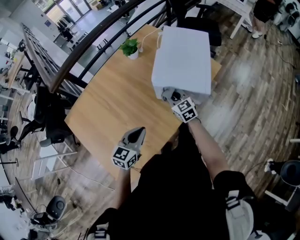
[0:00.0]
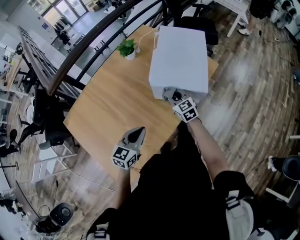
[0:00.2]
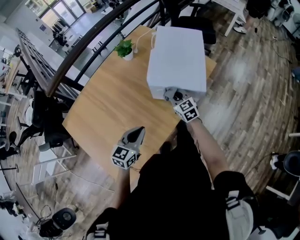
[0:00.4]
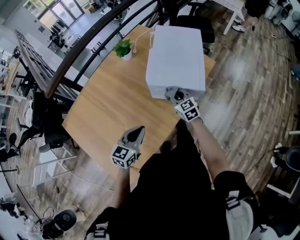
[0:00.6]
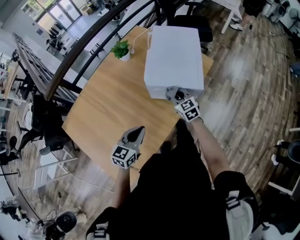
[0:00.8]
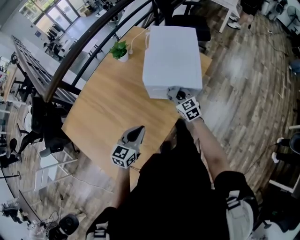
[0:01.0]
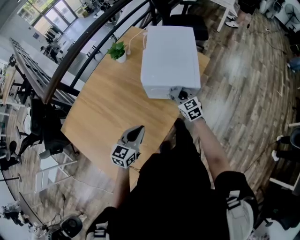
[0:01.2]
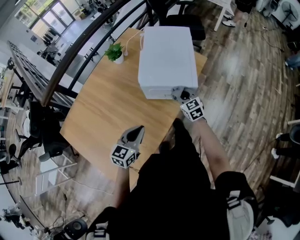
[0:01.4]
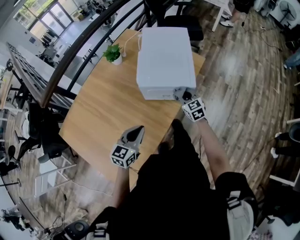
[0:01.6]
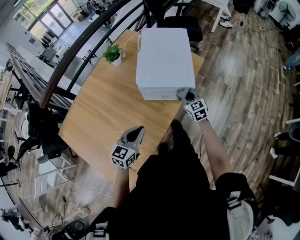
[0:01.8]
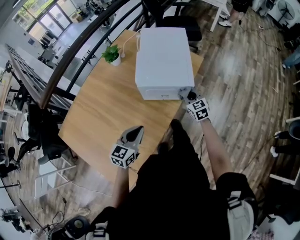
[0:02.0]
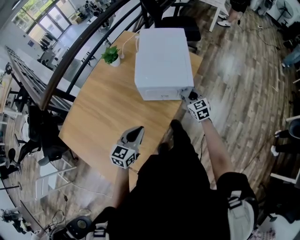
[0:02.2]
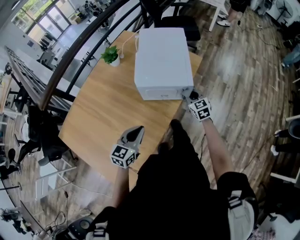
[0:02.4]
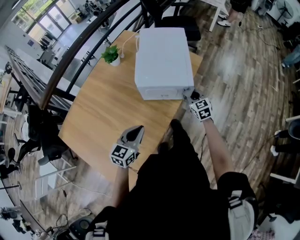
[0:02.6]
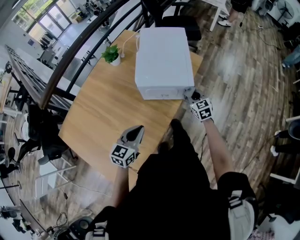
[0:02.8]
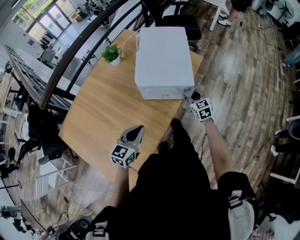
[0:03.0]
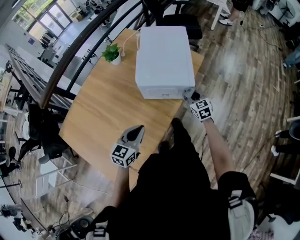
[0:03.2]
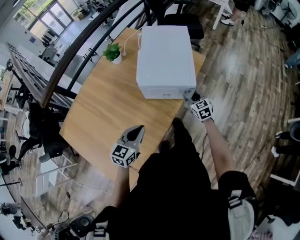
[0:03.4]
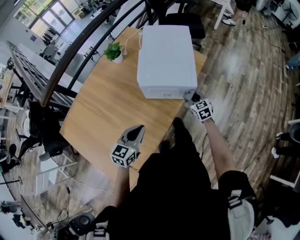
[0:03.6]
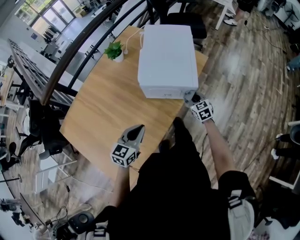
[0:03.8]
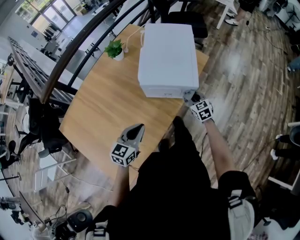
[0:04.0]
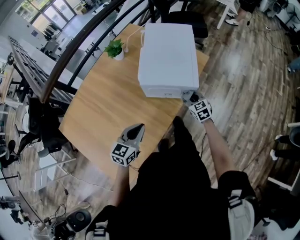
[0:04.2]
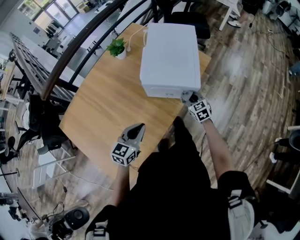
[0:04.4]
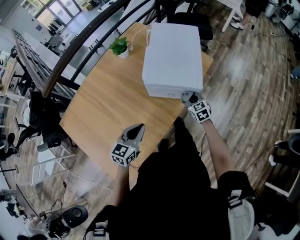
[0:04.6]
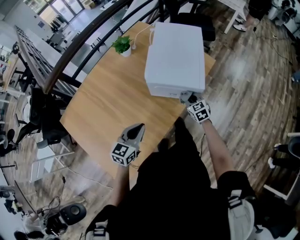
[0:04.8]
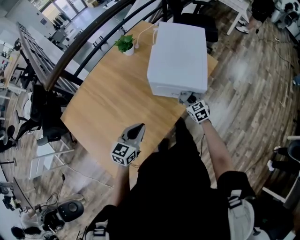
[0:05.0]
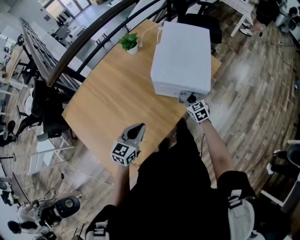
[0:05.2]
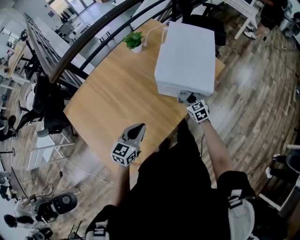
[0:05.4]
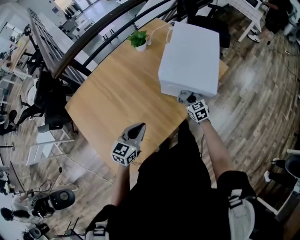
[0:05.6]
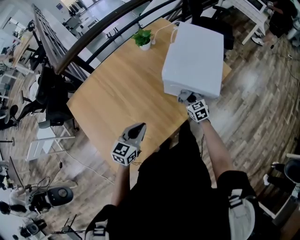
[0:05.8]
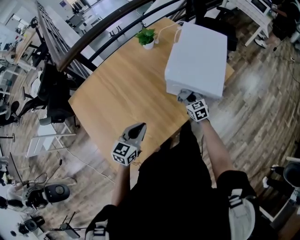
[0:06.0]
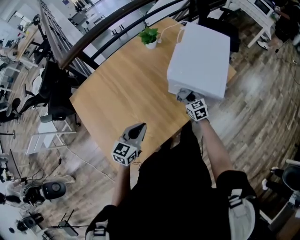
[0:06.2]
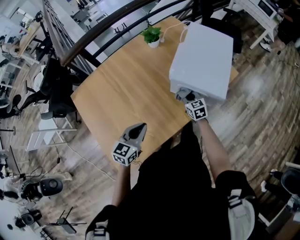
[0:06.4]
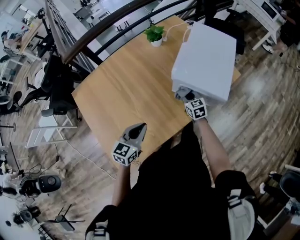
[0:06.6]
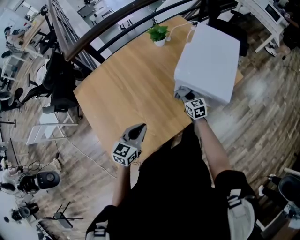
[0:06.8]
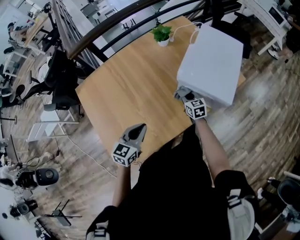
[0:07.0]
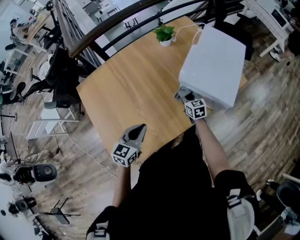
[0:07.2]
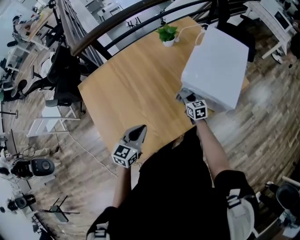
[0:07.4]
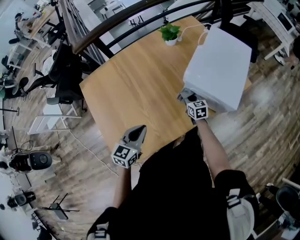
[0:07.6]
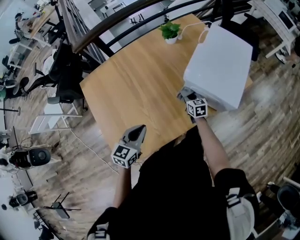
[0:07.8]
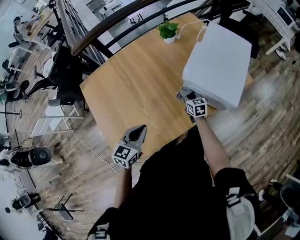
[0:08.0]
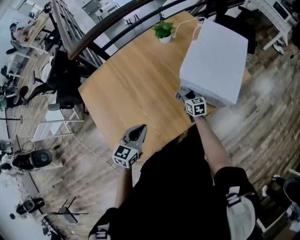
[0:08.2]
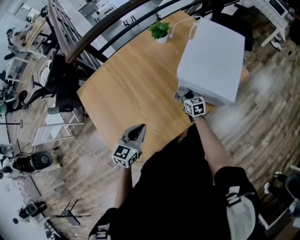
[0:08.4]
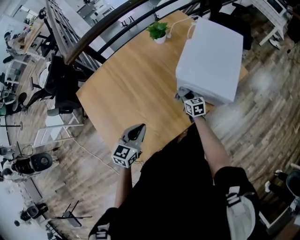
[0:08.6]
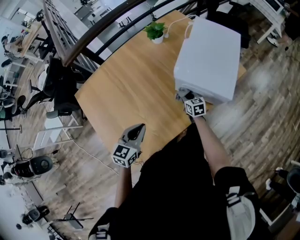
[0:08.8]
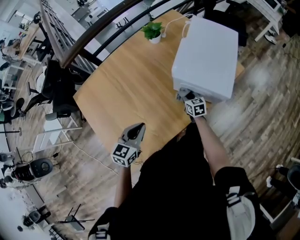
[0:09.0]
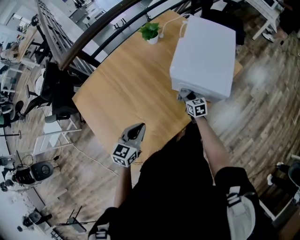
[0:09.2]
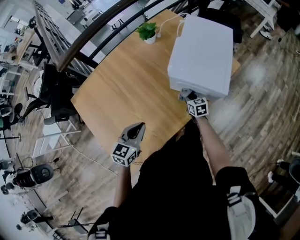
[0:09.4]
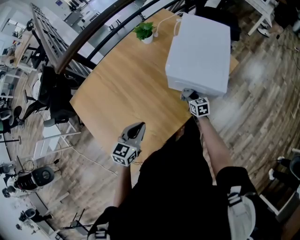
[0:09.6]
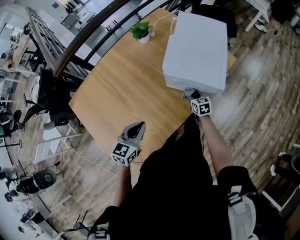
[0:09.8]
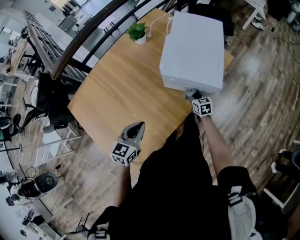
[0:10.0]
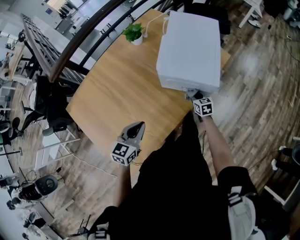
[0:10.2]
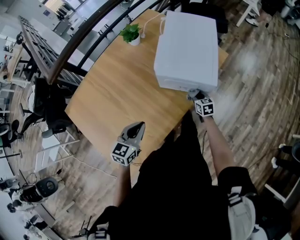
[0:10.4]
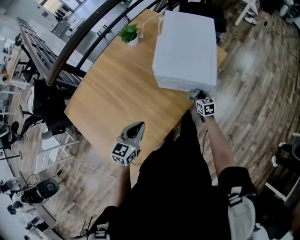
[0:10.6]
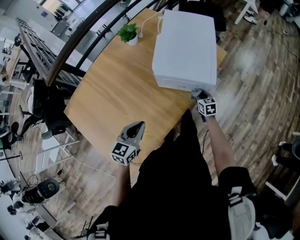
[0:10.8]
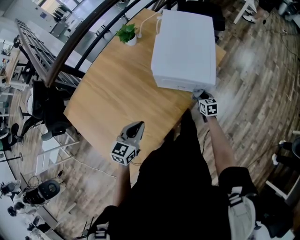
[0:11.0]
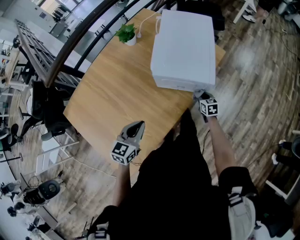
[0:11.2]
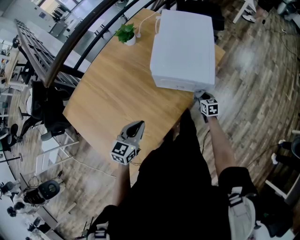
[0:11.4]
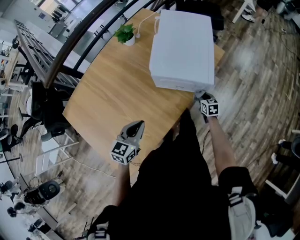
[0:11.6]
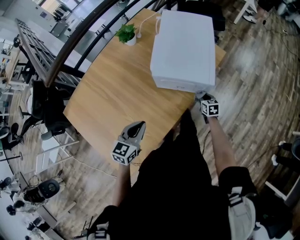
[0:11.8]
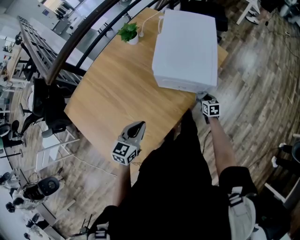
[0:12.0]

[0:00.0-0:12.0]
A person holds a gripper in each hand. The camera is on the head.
0:00.0 to 0:01.6: The right gripper shifts approximately 15 cm to the right.
0:01.6 to 0:03.0: The right gripper goes roughly 5 cm to the right.
0:03.0 to 0:04.4: The right gripper ends up some 5 cm from where it was.
0:04.4 to 0:06.0: The right gripper travels to the left by roughly 15 cm. Meanwhile the left gripper travels to the left by some 5 cm.
0:06.0 to 0:07.6: Both grippers travel together to the left, approximately 5 cm.
0:07.6 to 0:09.0: There are only small adjustments of the grippers.
0:09.0 to 0:10.4: The right gripper shifts approximately 15 cm to the right.
0:10.4 to 0:12.0: The right gripper moves to the right, some 5 cm.

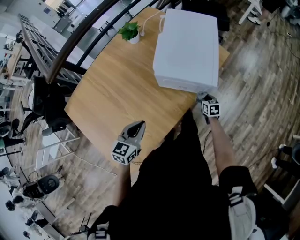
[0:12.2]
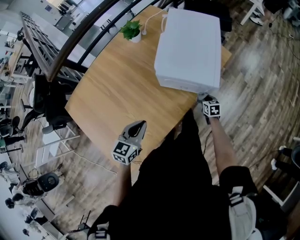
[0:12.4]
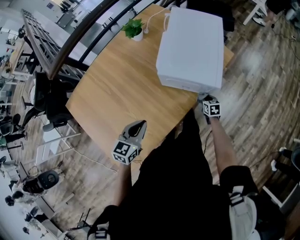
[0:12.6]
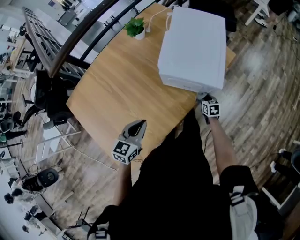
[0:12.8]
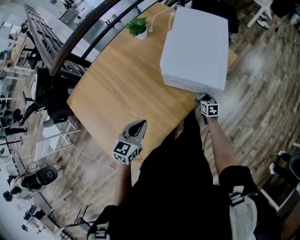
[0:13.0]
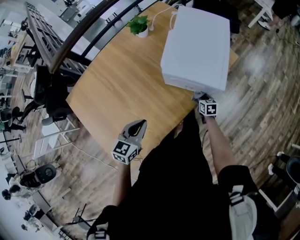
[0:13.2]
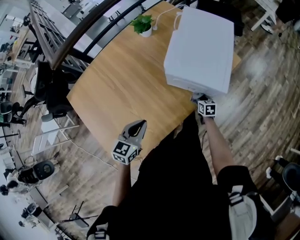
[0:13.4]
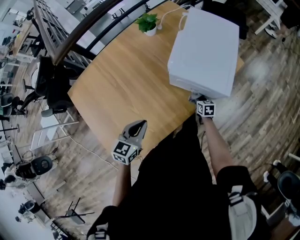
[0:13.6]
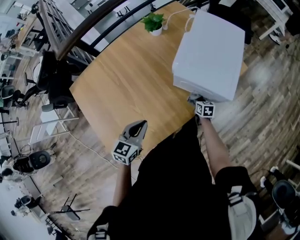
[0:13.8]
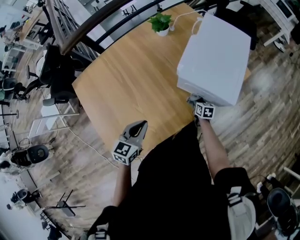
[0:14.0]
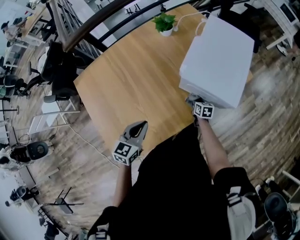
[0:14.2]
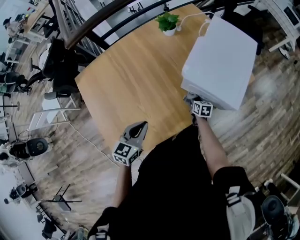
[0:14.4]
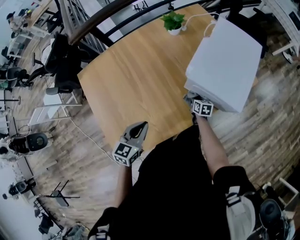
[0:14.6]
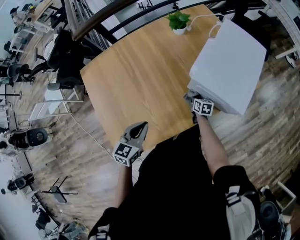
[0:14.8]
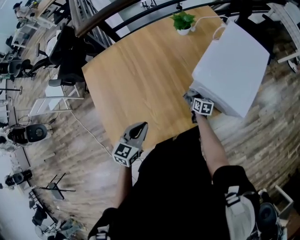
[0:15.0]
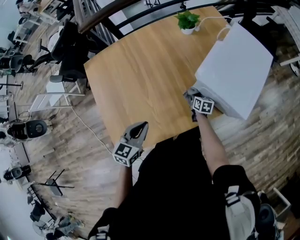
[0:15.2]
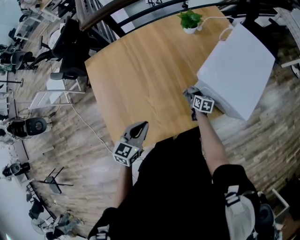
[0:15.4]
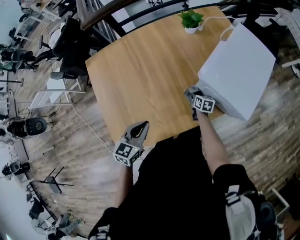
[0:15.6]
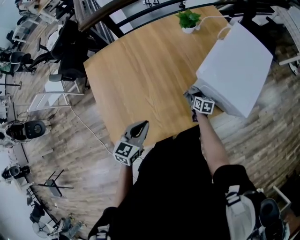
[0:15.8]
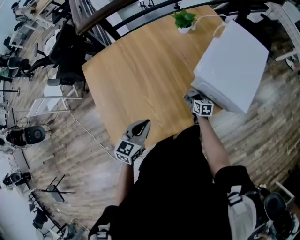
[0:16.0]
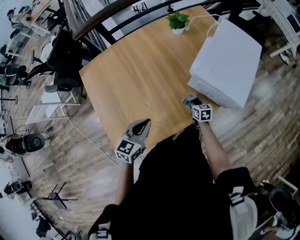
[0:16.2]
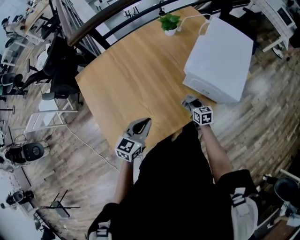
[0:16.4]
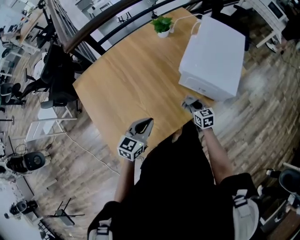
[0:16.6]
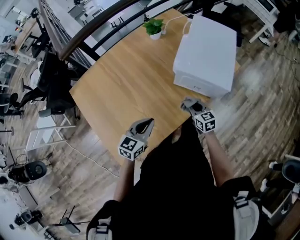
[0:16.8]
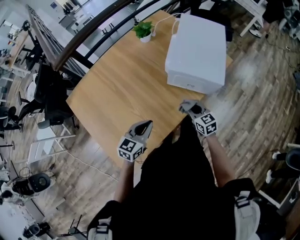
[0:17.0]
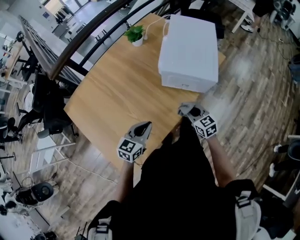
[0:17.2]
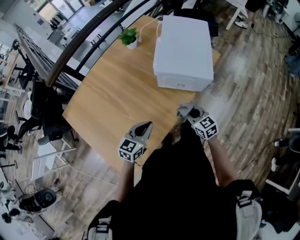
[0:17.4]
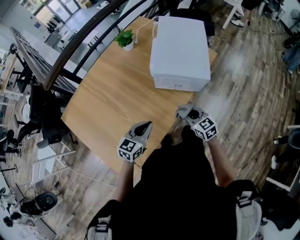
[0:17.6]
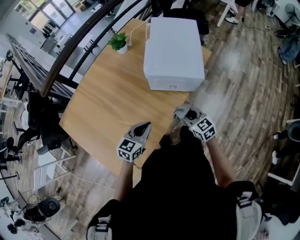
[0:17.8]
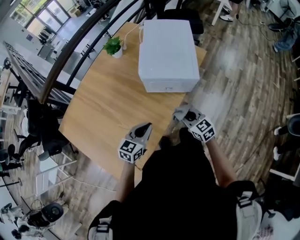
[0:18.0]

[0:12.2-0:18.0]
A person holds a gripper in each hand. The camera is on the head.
0:12.2 to 0:13.6: The right gripper moves to the left, roughly 10 cm.
0:13.6 to 0:15.0: The left gripper moves to the left, some 5 cm. Meanwhile the right gripper moves to the left, approximately 15 cm.
0:15.0 to 0:16.6: The right gripper shifts roughly 15 cm upward and backward, and swivels about 20 degrees.
0:16.6 to 0:18.0: The right gripper moves upward, backward and to the right, roughly 15 cm, while the left gripper travels to the right by about 10 cm, and changes its angle by approximately 20 degrees.

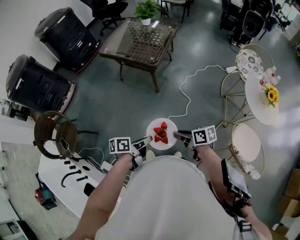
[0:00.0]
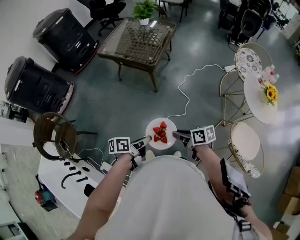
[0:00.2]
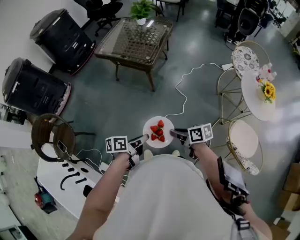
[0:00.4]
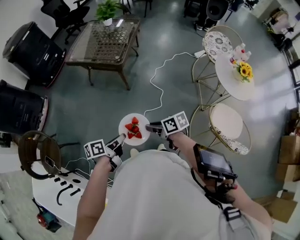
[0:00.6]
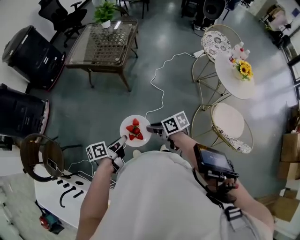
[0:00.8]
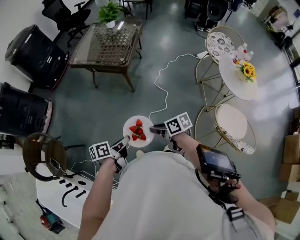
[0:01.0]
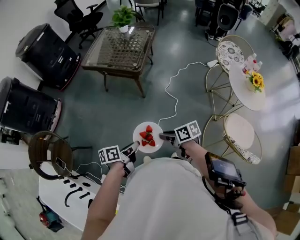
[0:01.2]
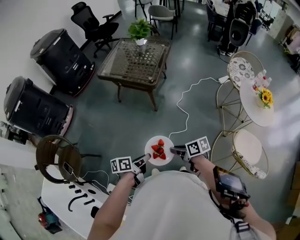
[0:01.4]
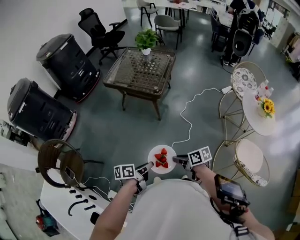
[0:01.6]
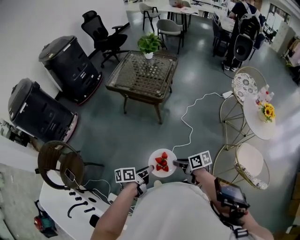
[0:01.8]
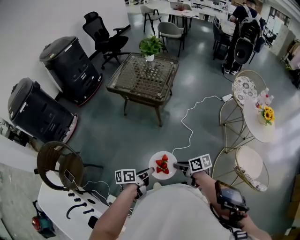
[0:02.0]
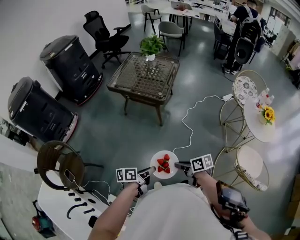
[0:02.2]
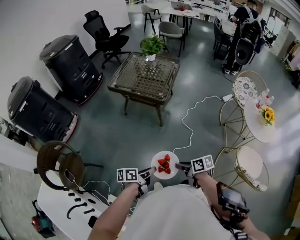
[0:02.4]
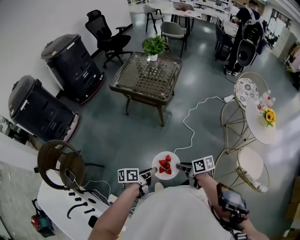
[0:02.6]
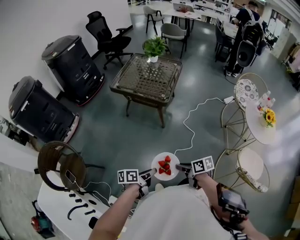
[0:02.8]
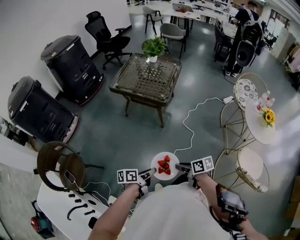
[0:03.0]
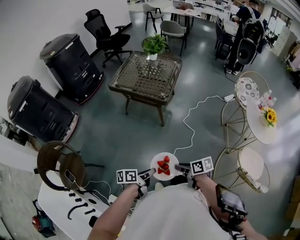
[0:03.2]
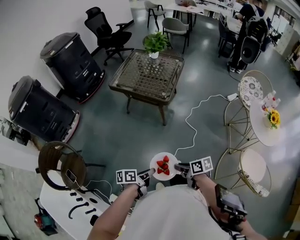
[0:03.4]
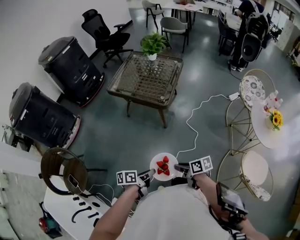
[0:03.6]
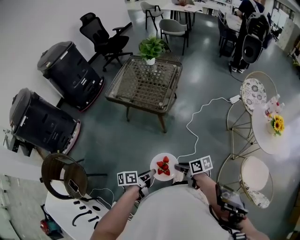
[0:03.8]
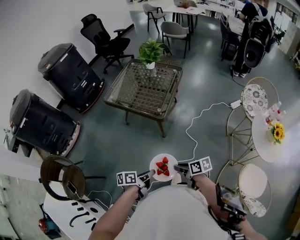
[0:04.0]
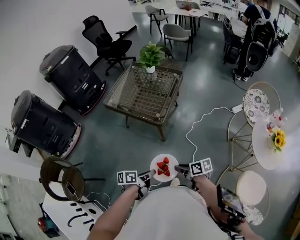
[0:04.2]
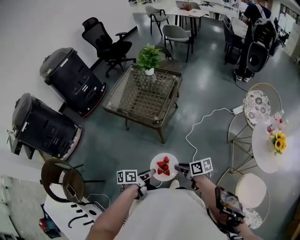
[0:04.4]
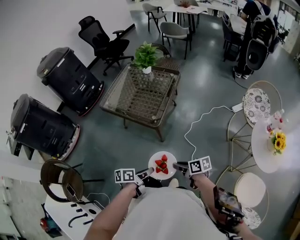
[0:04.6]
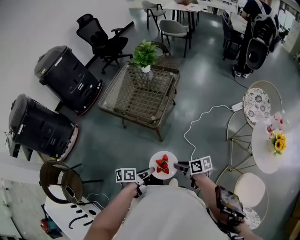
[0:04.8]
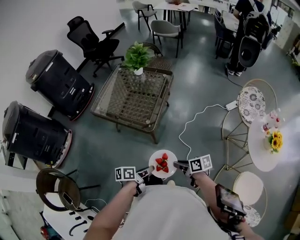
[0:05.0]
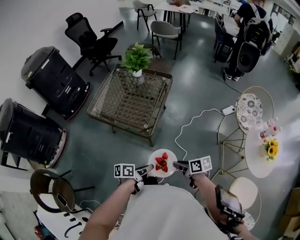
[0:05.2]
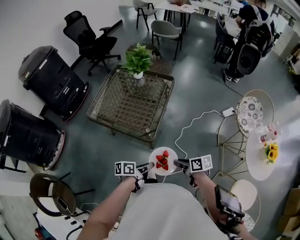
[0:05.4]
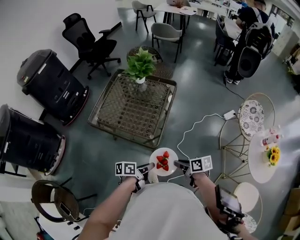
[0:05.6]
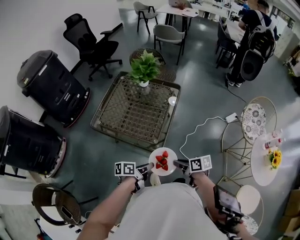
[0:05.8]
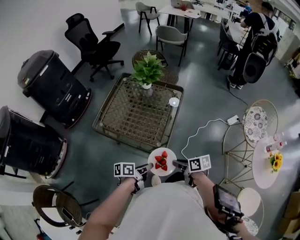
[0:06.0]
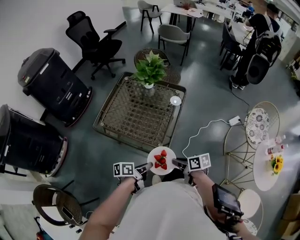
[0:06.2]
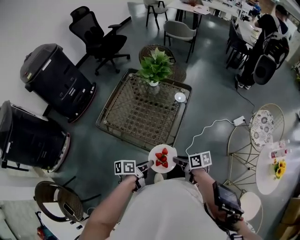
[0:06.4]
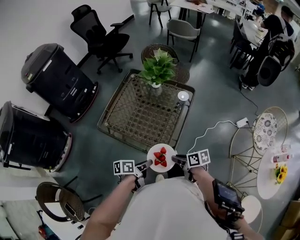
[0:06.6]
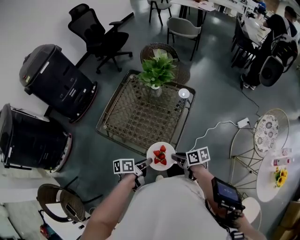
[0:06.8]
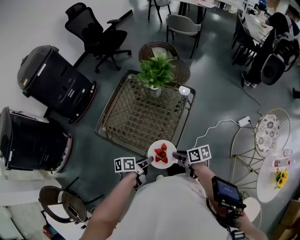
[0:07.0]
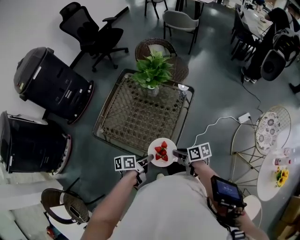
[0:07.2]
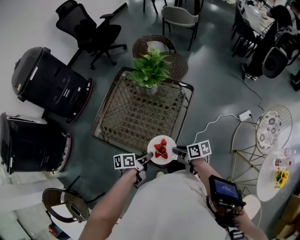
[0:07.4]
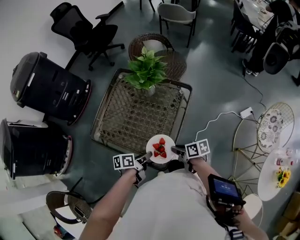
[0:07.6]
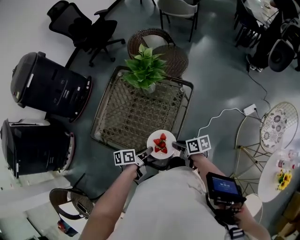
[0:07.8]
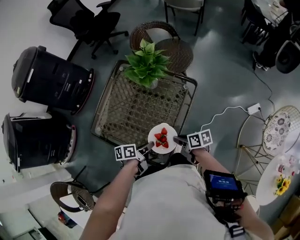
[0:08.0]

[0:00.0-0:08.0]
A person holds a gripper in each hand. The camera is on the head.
0:00.0 to 0:01.6: The right gripper ends up some 5 cm from where it was.
0:03.2 to 0:04.8: The right gripper ends up approximately 30 cm from where it was.
0:04.8 to 0:06.4: The right gripper moves some 30 cm.
0:06.4 to 0:08.0: The right gripper changes place by approximately 25 cm.
